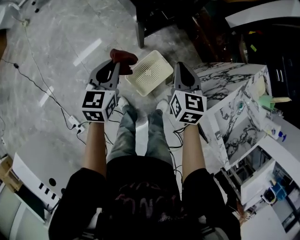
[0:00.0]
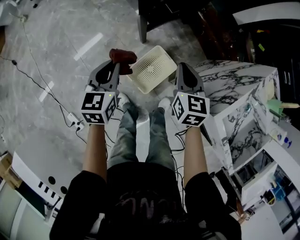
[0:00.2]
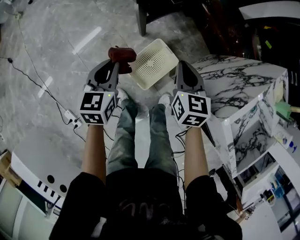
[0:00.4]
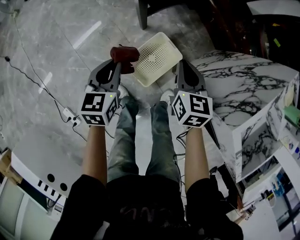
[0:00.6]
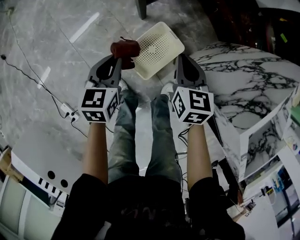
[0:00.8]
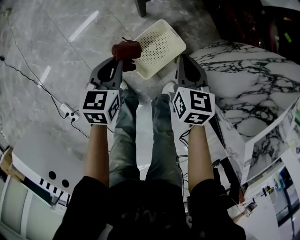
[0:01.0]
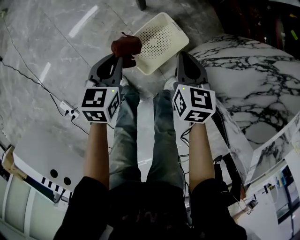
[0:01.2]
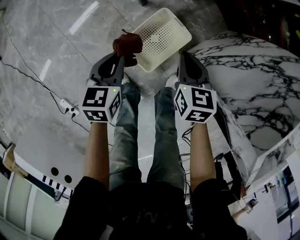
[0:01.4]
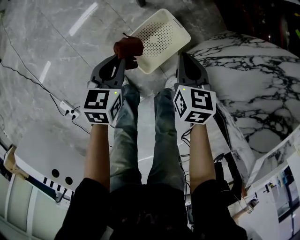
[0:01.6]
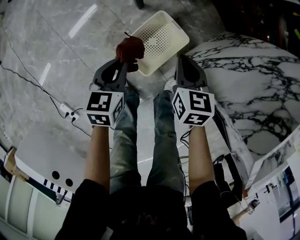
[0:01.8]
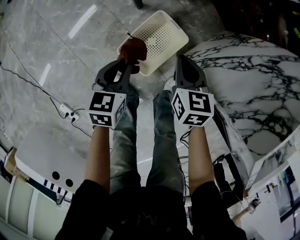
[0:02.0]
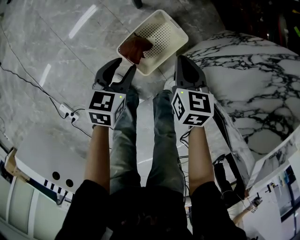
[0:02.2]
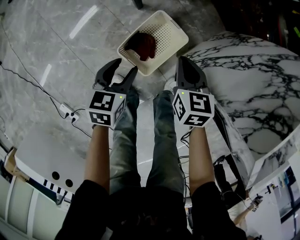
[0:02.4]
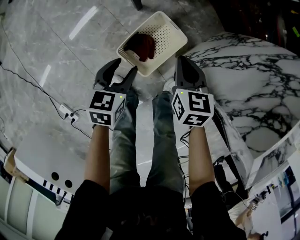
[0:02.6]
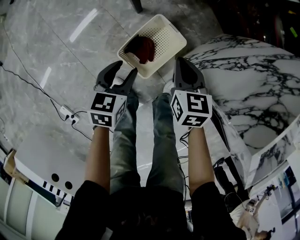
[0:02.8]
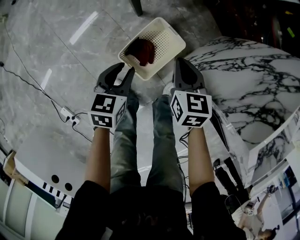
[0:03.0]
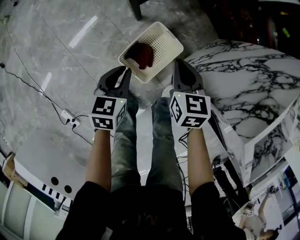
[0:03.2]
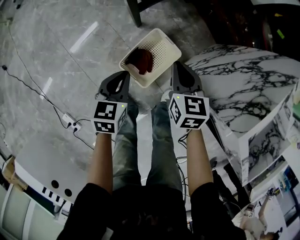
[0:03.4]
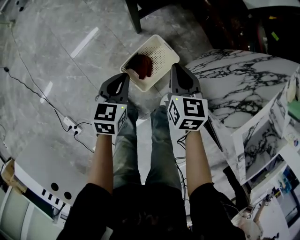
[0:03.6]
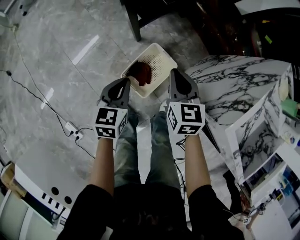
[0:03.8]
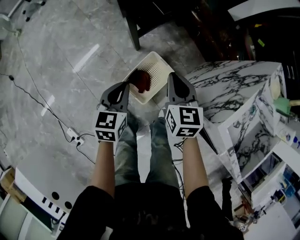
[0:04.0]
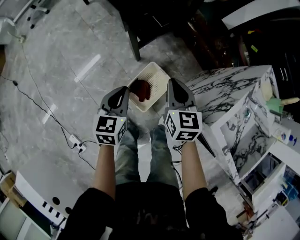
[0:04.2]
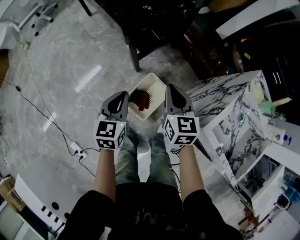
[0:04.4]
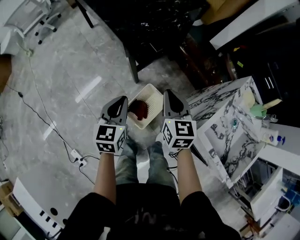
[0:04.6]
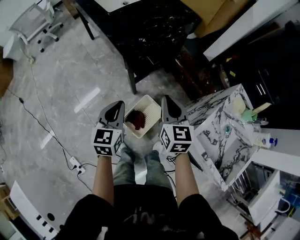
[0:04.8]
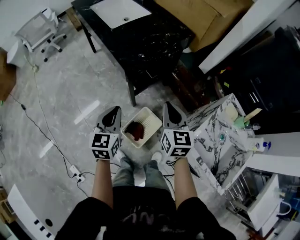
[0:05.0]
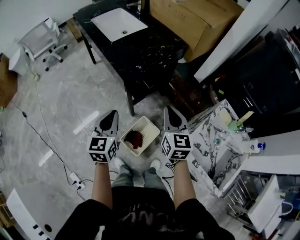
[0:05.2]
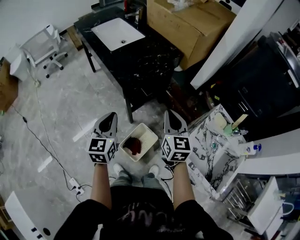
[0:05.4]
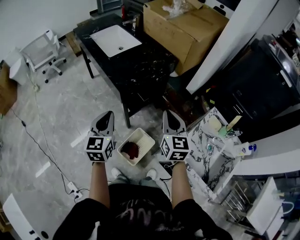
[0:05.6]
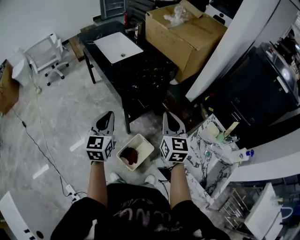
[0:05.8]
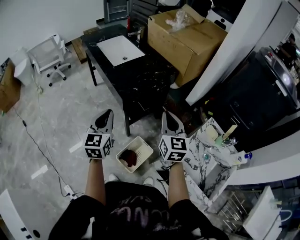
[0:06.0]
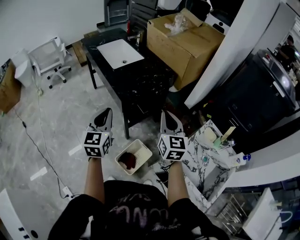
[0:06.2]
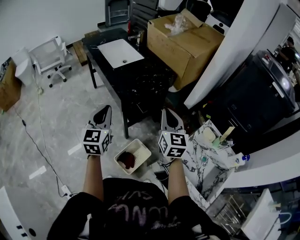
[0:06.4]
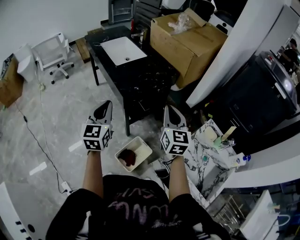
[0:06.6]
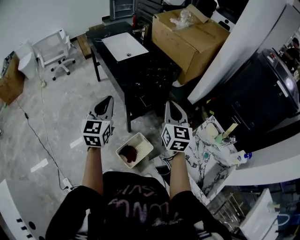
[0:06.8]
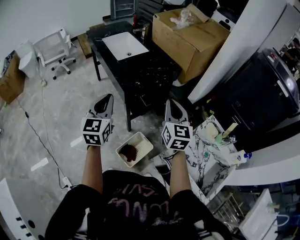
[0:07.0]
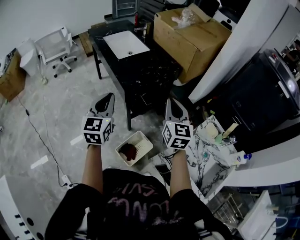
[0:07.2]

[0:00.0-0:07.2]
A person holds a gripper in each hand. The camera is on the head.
0:00.0 to 0:01.4: Both grippers travel together downward, some 30 cm.
0:01.4 to 0:02.8: The left gripper opens up.
0:02.8 to 0:04.4: The grippers both shift upward by roughly 25 cm. The left gripper swivels some 20 degrees, and closes.
0:04.4 to 0:05.8: The grippers both shift upward by approximately 30 cm. The right gripper swivels some 20 degrees. Meanwhile the left gripper changes its angle by approximately 20 degrees.
0:05.8 to 0:07.2: The left gripper goes approximately 5 cm upward.

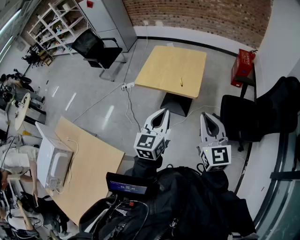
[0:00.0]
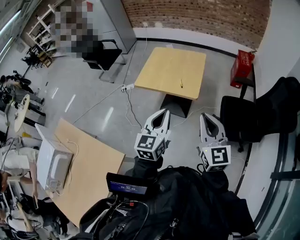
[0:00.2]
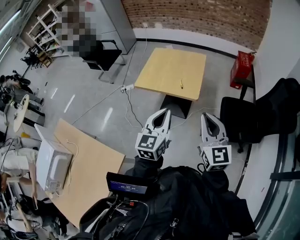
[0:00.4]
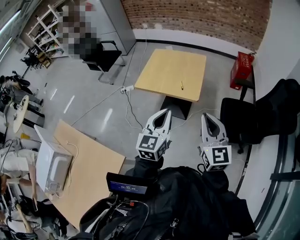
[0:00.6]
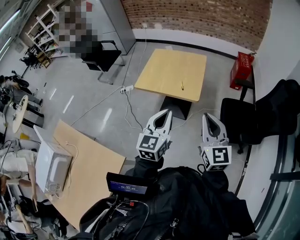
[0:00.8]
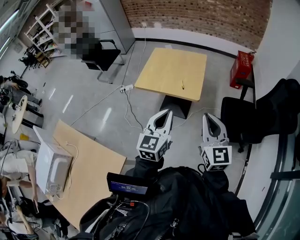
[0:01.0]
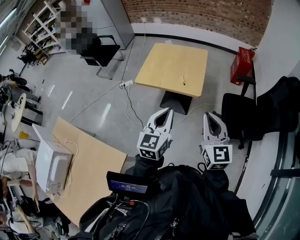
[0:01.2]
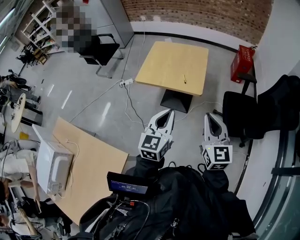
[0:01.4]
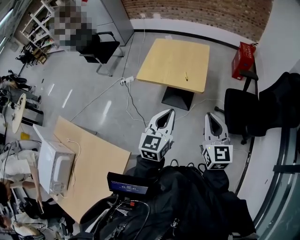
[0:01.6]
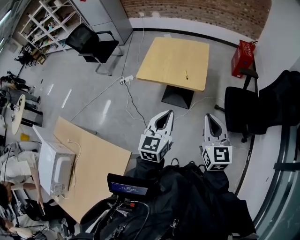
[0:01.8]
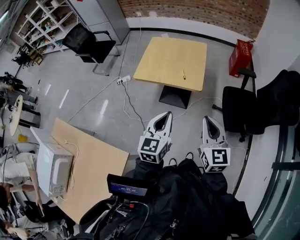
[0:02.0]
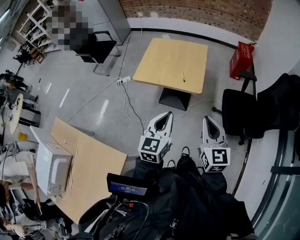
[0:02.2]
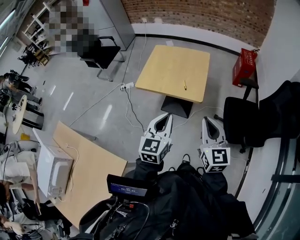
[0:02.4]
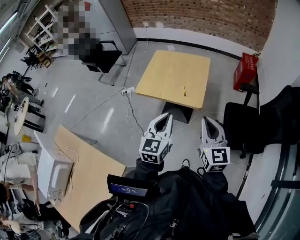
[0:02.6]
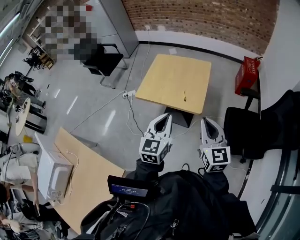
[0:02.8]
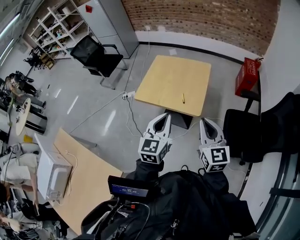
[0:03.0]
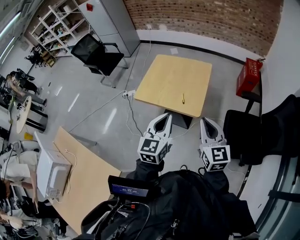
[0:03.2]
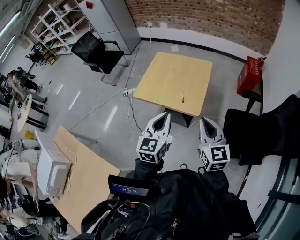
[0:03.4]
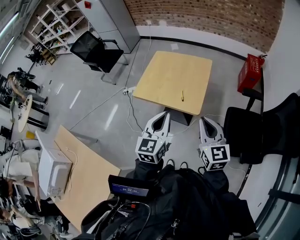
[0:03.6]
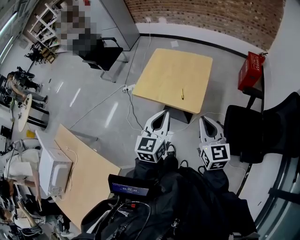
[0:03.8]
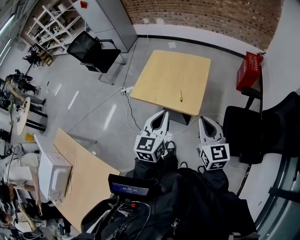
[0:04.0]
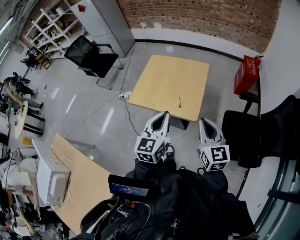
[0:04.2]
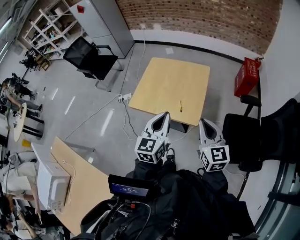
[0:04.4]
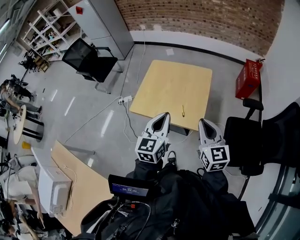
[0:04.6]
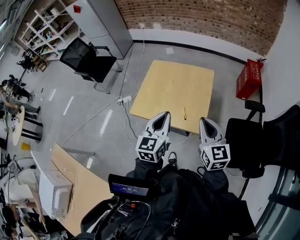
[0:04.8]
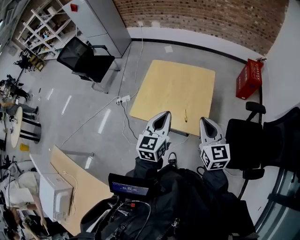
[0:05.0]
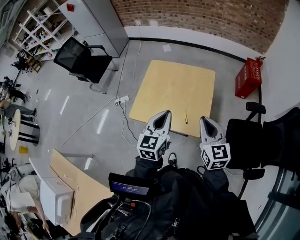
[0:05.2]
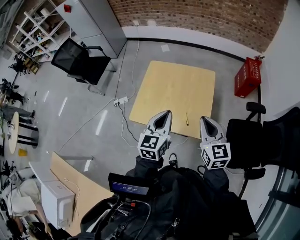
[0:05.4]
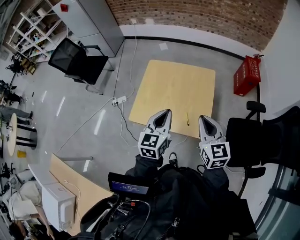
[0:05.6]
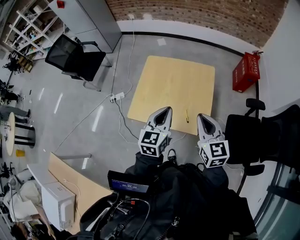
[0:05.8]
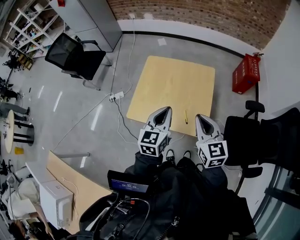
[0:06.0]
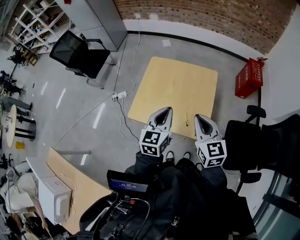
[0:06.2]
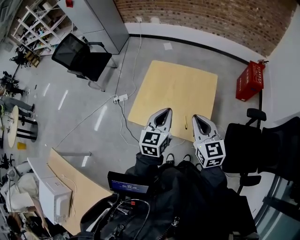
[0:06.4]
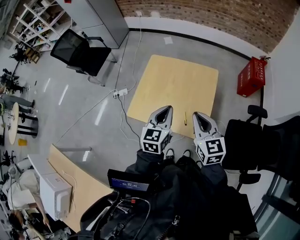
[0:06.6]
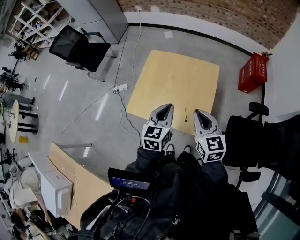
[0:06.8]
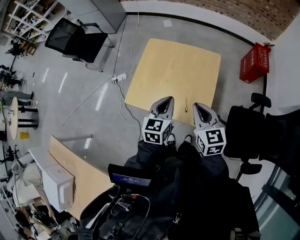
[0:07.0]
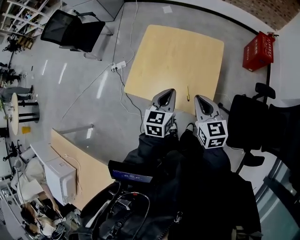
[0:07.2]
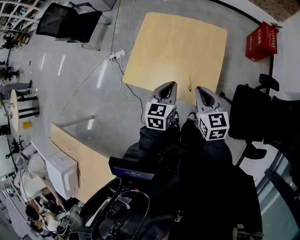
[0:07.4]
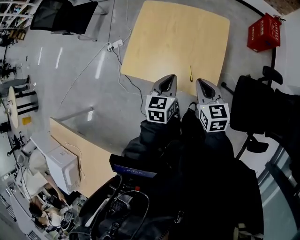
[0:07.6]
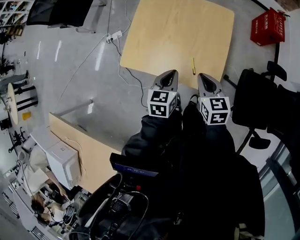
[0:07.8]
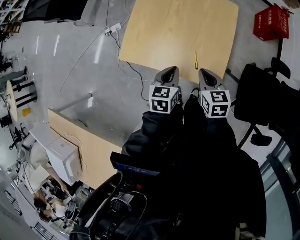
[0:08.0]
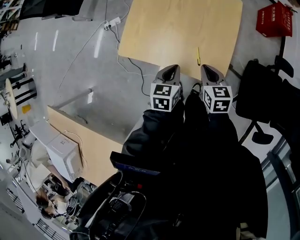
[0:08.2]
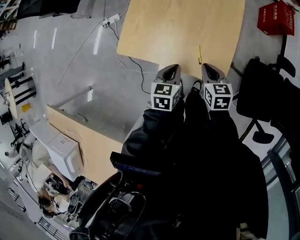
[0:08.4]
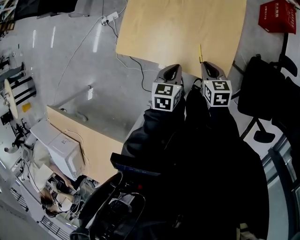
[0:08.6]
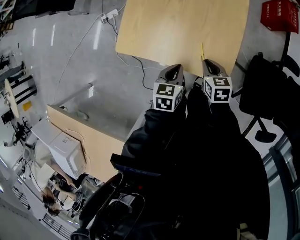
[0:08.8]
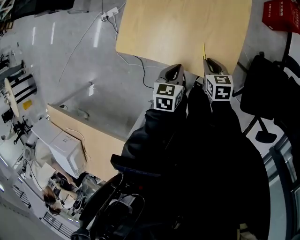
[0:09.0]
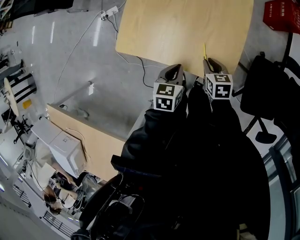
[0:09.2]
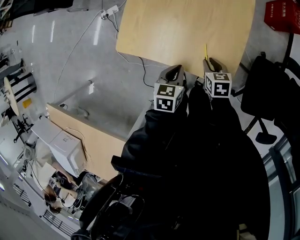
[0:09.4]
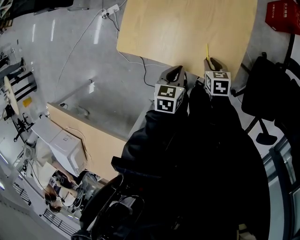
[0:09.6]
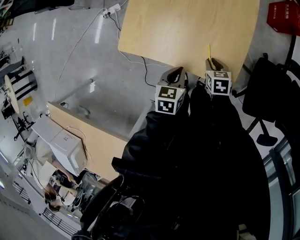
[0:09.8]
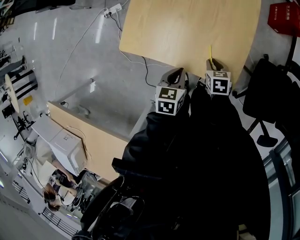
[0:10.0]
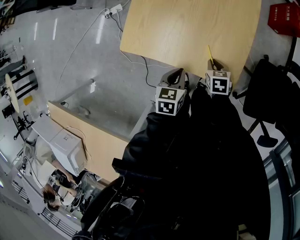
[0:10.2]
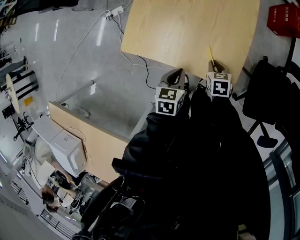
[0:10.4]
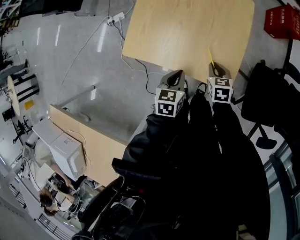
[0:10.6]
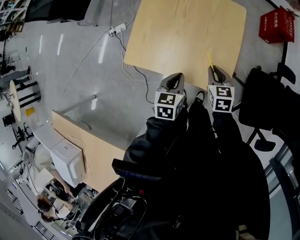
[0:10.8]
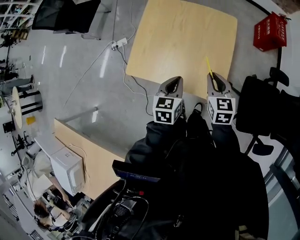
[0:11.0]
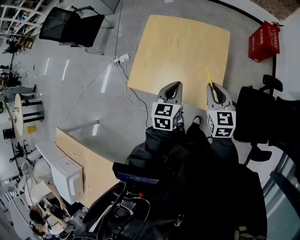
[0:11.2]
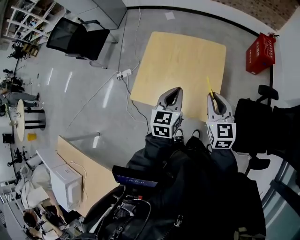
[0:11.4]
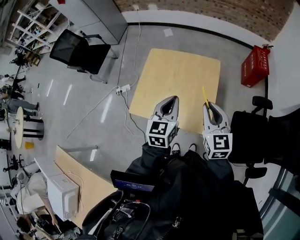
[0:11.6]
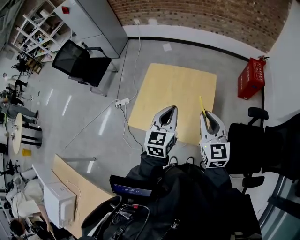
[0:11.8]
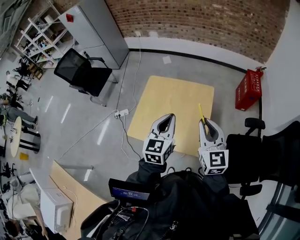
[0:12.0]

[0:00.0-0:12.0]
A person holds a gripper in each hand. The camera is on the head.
0:00.0 to 0:01.6: The right gripper changes place by about 5 cm. The left gripper moves about 5 cm.
0:01.6 to 0:03.0: Both grippers move forward, approximately 15 cm.
0:03.0 to 0:04.4: Both grippers travel together forward, roughly 10 cm.
0:04.4 to 0:06.0: The two grippers go about 20 cm forward and to the left.
0:06.0 to 0:07.6: Both grippers move downward, some 15 cm.
0:07.6 to 0:09.0: Both grippers move downward, about 15 cm. The right gripper swivels approximately 20 degrees.
0:09.0 to 0:10.4: The right gripper shifts by some 5 cm.
0:10.4 to 0:12.0: Both grippers move upward, roughly 40 cm. The right gripper tips its fingers upward by some 50 degrees. Meanwhile the left gripper tips its fingers upward by approximately 40 degrees.

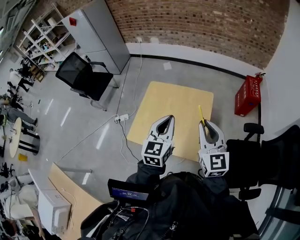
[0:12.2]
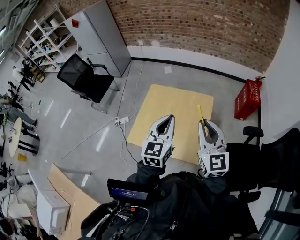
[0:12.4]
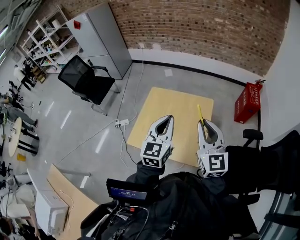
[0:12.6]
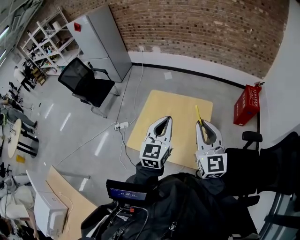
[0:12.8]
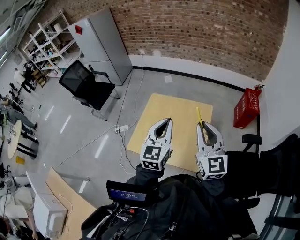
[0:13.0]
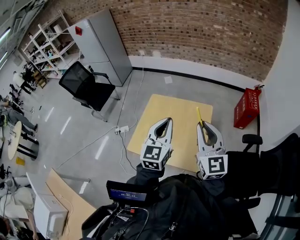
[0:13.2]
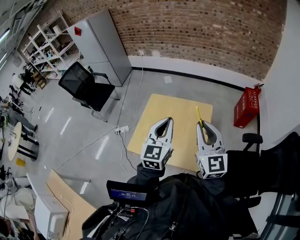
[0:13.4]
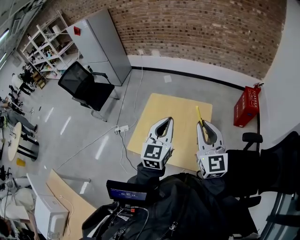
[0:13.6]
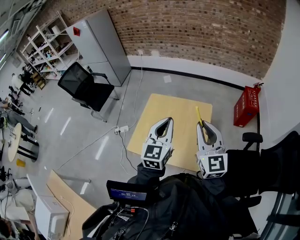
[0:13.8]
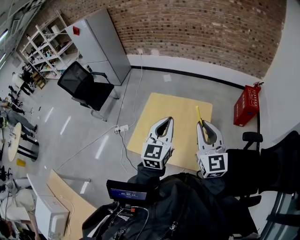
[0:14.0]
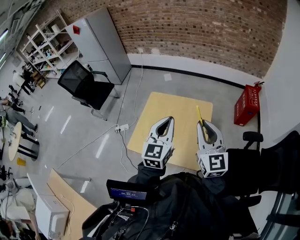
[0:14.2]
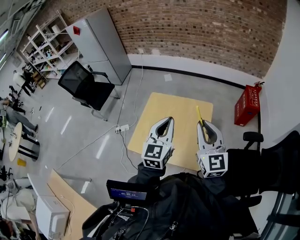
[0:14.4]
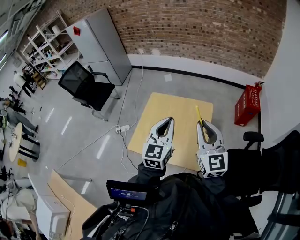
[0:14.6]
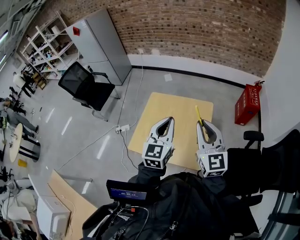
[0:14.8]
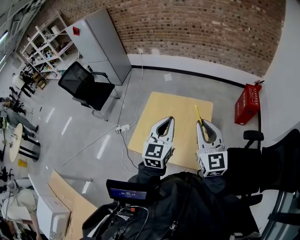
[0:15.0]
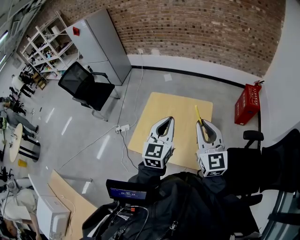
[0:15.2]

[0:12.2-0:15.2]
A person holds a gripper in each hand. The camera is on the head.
0:12.2 to 0:13.8: The grippers make only small movements.
0:13.8 to 0:15.2: Neither gripper changes place.

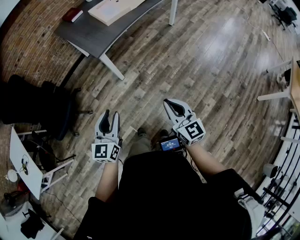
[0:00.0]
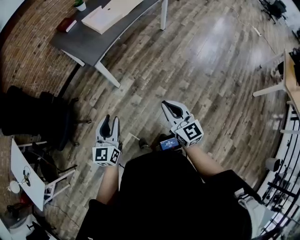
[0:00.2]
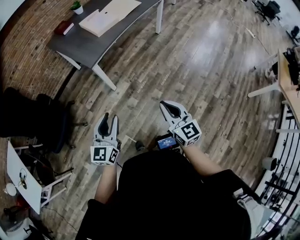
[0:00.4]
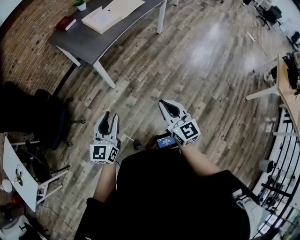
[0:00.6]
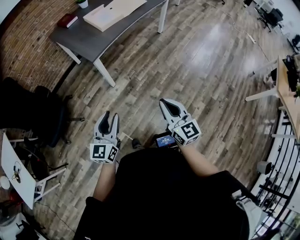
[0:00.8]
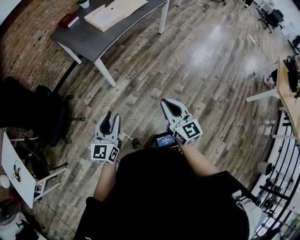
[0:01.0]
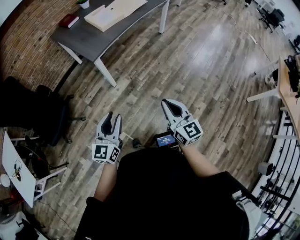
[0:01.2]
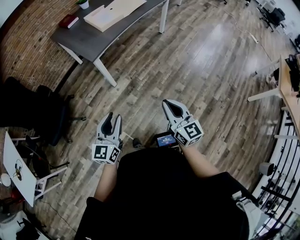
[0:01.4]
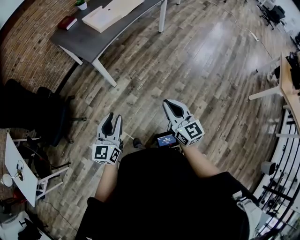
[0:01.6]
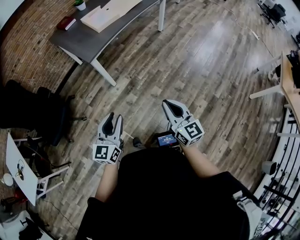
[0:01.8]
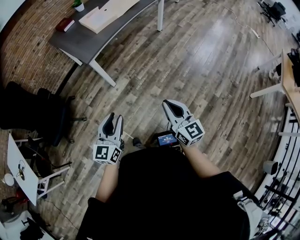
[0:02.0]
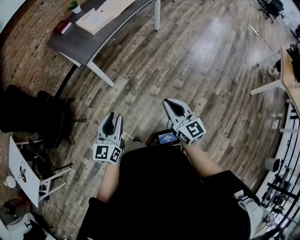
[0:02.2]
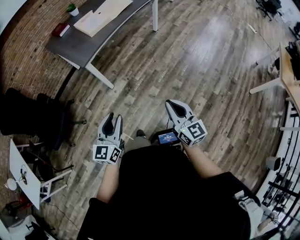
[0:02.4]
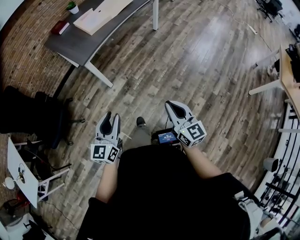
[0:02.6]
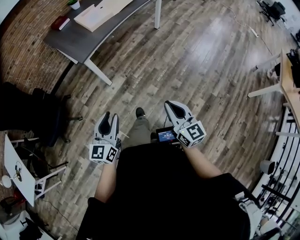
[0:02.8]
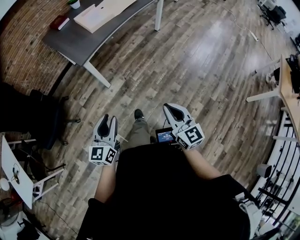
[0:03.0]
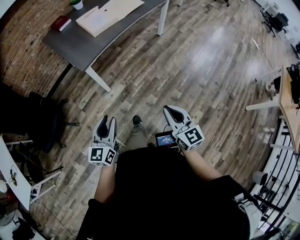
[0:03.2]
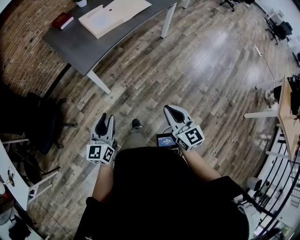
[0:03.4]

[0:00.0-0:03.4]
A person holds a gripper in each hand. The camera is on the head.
0:00.0 to 0:01.6: The left gripper moves backward, some 5 cm, while the right gripper shifts by about 5 cm.
0:01.6 to 0:03.4: Both grippers move forward, about 20 cm.
